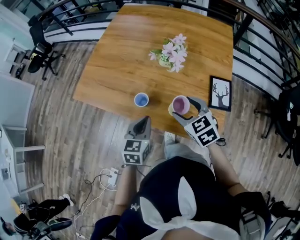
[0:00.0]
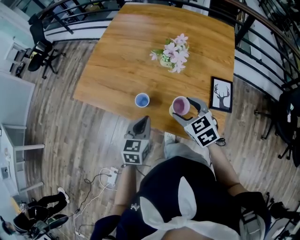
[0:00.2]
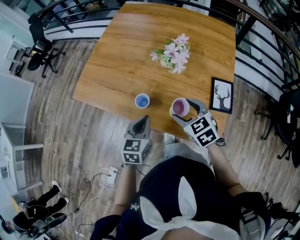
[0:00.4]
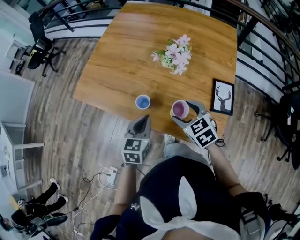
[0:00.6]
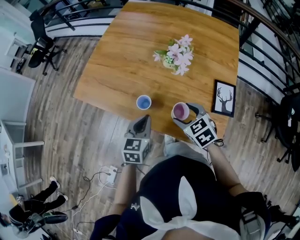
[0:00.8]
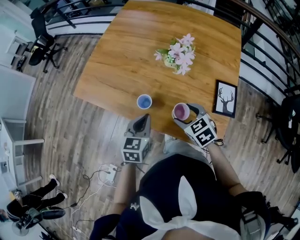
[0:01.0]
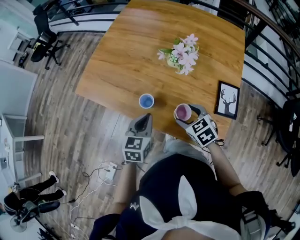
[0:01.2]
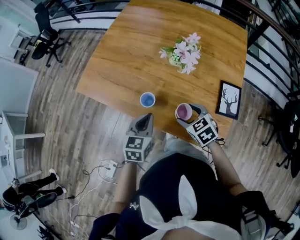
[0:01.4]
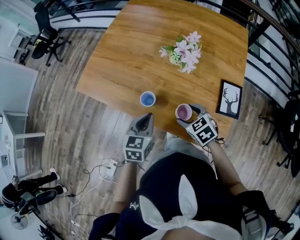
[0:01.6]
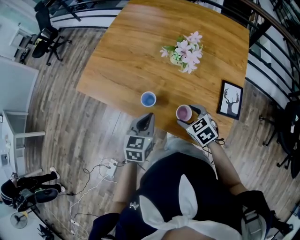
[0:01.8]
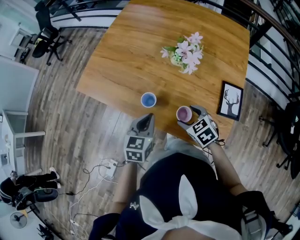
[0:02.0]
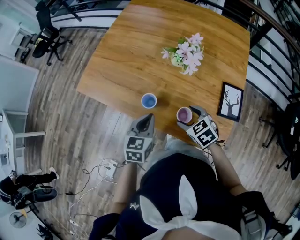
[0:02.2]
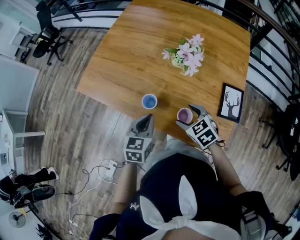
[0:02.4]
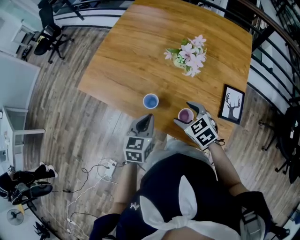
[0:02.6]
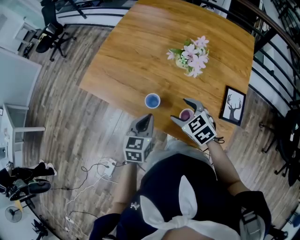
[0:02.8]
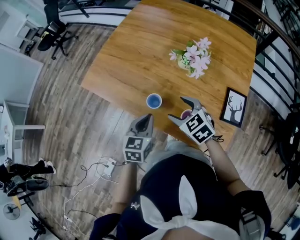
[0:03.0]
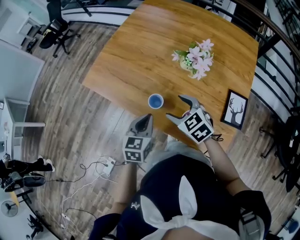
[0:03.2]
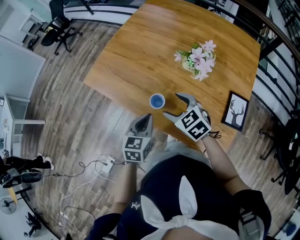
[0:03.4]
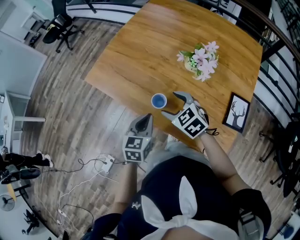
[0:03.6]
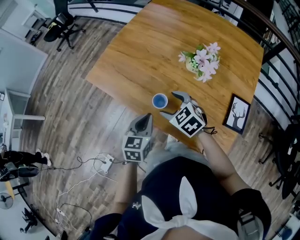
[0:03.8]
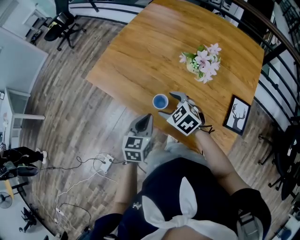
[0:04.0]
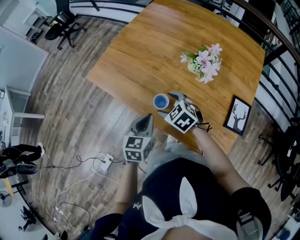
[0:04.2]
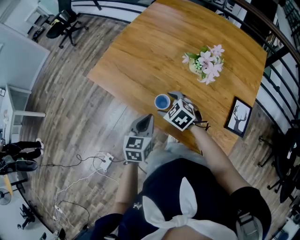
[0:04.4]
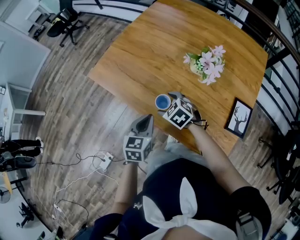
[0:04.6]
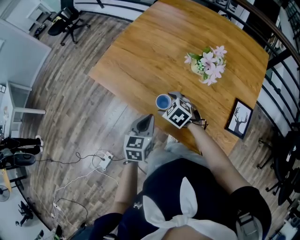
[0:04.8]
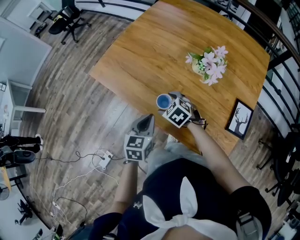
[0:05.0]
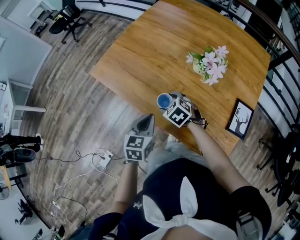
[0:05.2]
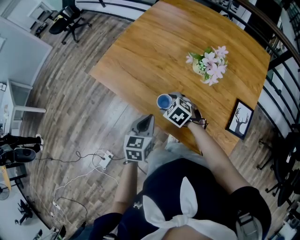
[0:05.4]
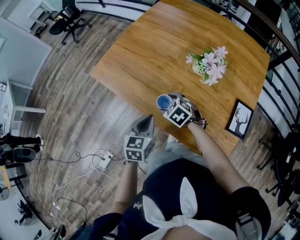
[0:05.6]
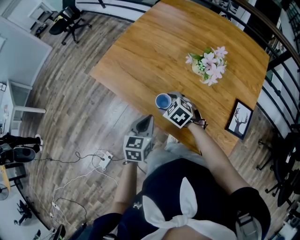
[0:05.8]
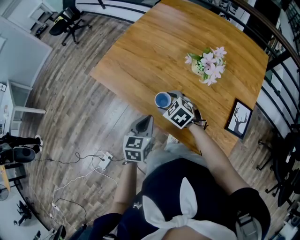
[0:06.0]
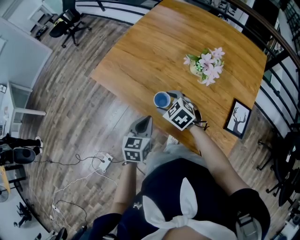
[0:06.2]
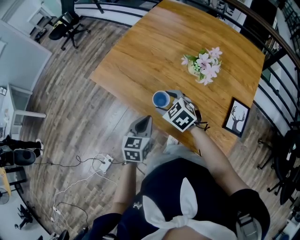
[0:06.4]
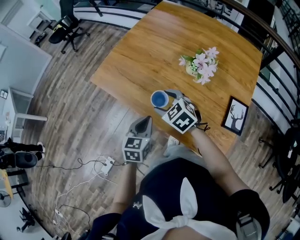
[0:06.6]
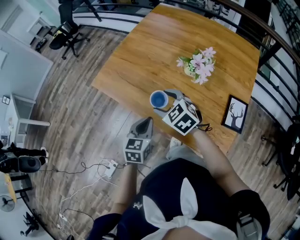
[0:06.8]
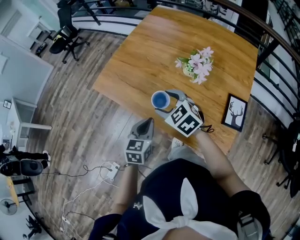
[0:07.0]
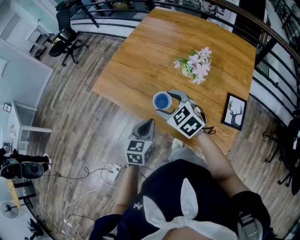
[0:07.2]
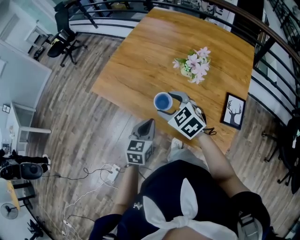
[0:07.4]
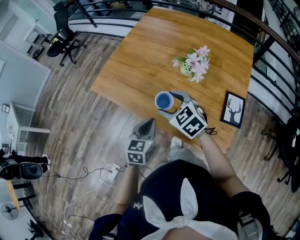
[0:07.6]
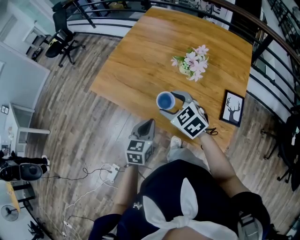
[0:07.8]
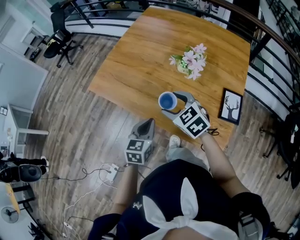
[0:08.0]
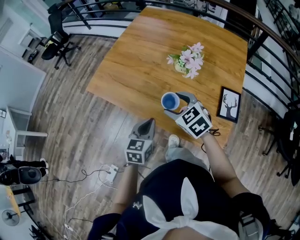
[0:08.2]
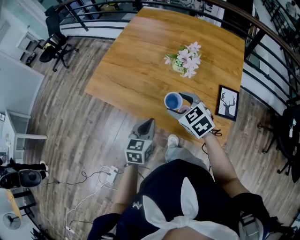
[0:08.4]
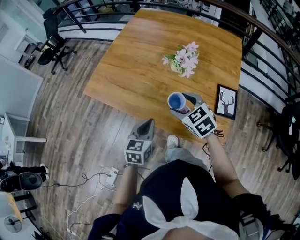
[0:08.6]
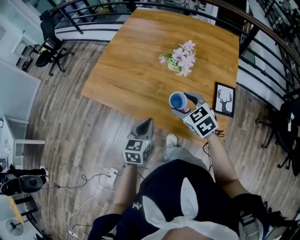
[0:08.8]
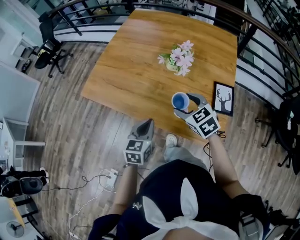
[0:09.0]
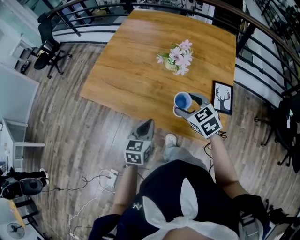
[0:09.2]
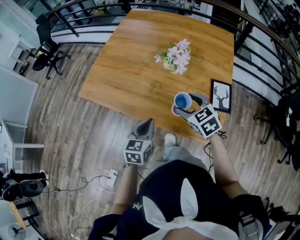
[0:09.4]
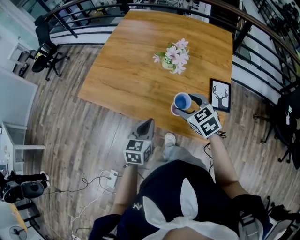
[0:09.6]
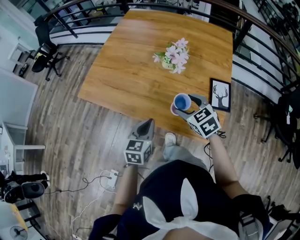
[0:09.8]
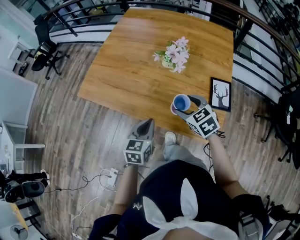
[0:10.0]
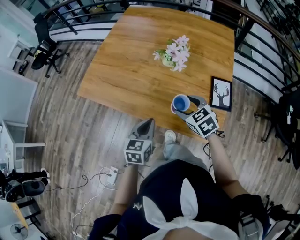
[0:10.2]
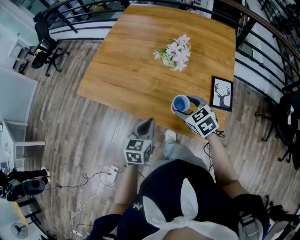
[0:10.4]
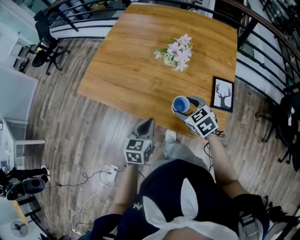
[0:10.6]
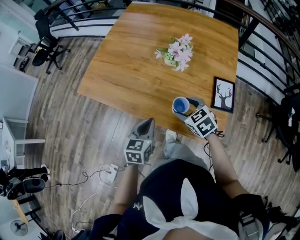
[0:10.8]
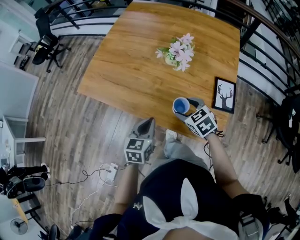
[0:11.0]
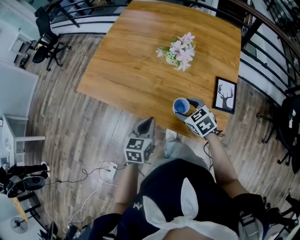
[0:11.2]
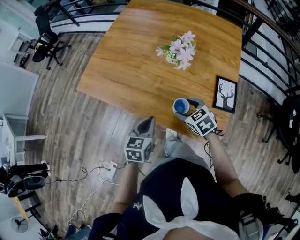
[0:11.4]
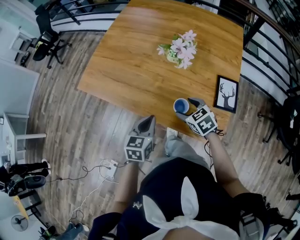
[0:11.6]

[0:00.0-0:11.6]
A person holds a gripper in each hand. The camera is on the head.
0:00.0 to 0:01.4: The right gripper goes approximately 10 cm downward.
0:01.4 to 0:02.8: The right gripper shifts some 5 cm to the left.
0:02.8 to 0:04.4: The right gripper shifts roughly 10 cm to the left and forward.
0:04.4 to 0:05.8: The grippers make only small movements.
0:05.8 to 0:07.2: The left gripper goes some 5 cm upward. Meanwhile the right gripper moves upward, some 15 cm.
0:07.2 to 0:08.8: The right gripper goes roughly 10 cm to the right and backward.
0:08.8 to 0:10.2: The right gripper changes place by about 5 cm.
0:10.2 to 0:11.6: The right gripper goes about 5 cm downward.

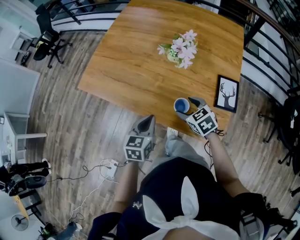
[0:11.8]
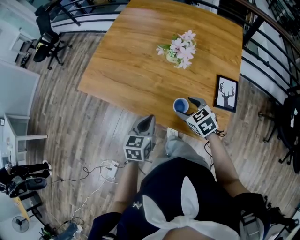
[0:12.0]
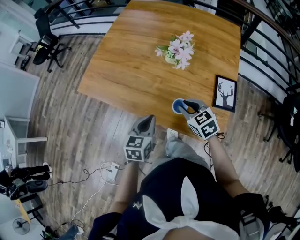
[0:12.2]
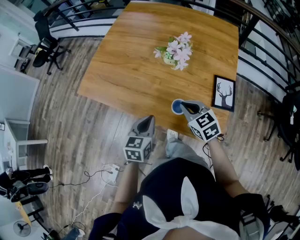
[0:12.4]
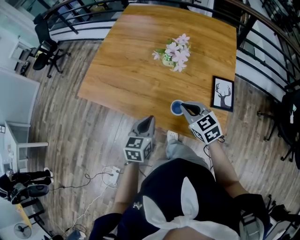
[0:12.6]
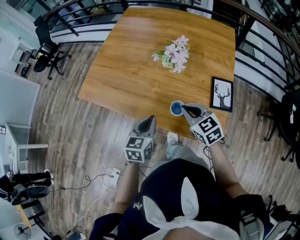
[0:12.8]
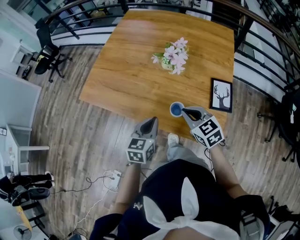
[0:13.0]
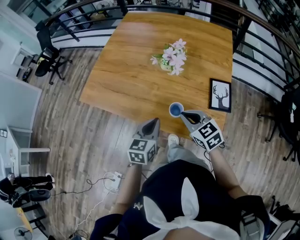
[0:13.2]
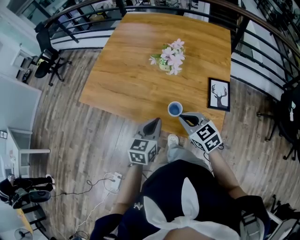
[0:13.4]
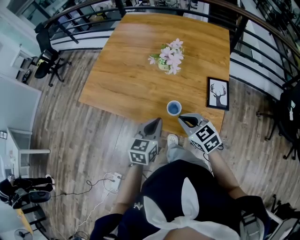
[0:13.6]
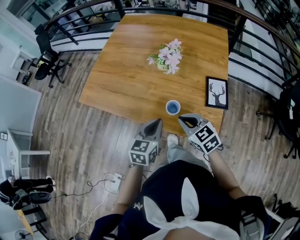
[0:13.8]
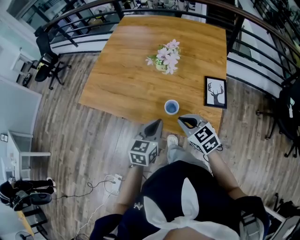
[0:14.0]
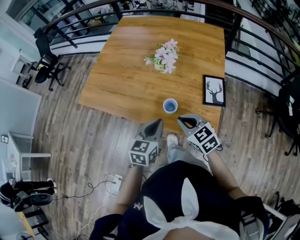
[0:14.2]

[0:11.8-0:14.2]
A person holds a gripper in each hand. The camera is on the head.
0:11.8 to 0:13.0: The right gripper shifts some 10 cm upward, and closes up.
0:13.0 to 0:14.2: Both grippers travel together backward, about 5 cm.

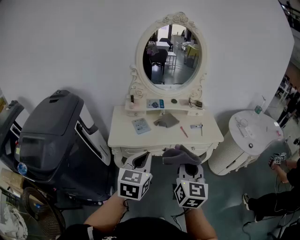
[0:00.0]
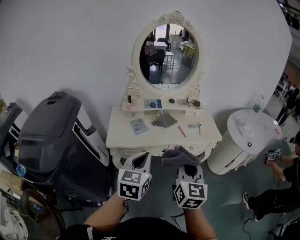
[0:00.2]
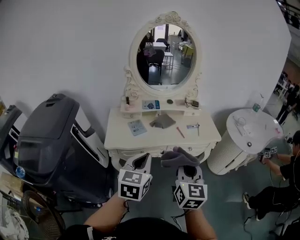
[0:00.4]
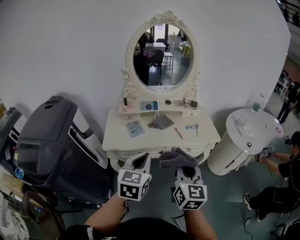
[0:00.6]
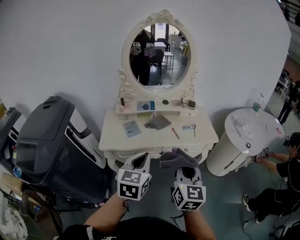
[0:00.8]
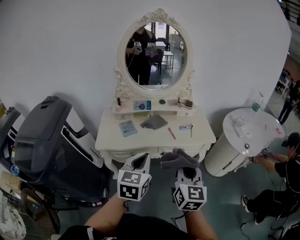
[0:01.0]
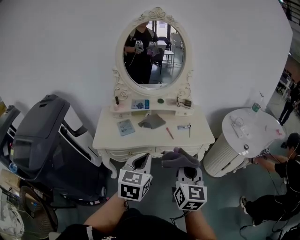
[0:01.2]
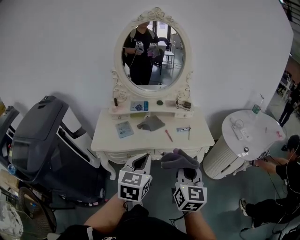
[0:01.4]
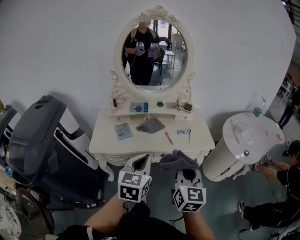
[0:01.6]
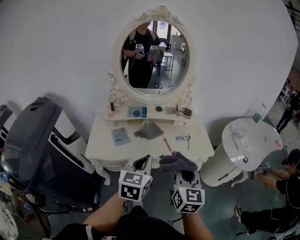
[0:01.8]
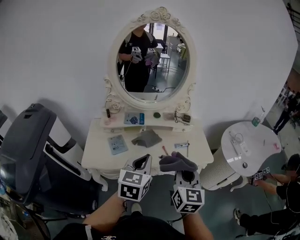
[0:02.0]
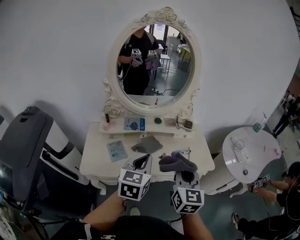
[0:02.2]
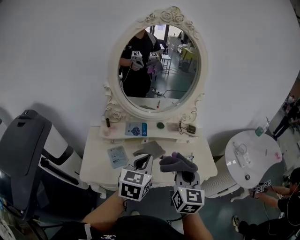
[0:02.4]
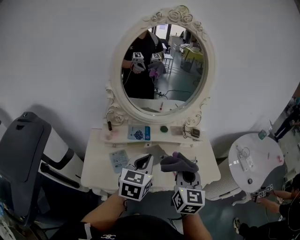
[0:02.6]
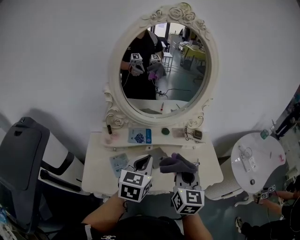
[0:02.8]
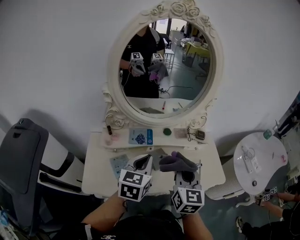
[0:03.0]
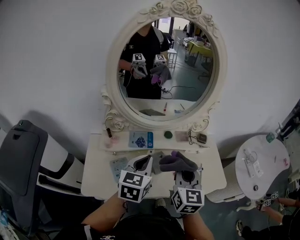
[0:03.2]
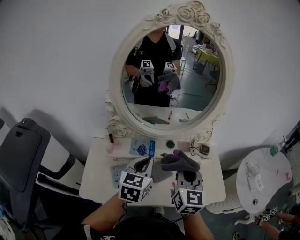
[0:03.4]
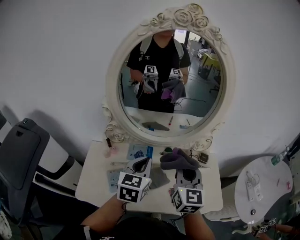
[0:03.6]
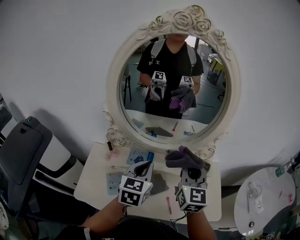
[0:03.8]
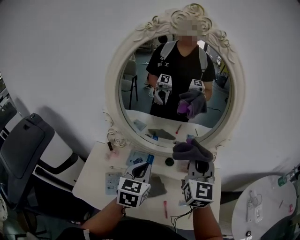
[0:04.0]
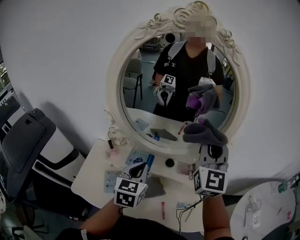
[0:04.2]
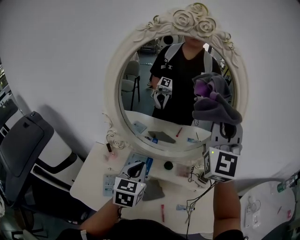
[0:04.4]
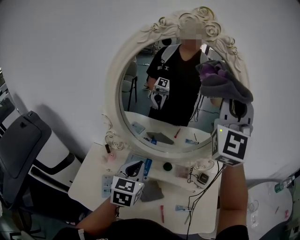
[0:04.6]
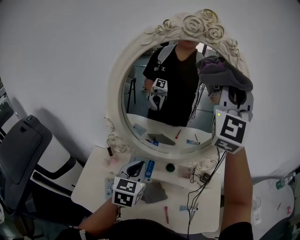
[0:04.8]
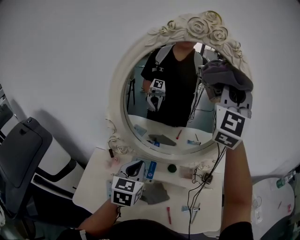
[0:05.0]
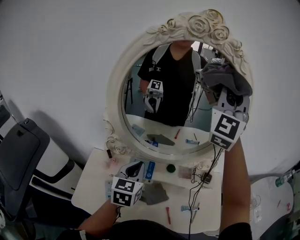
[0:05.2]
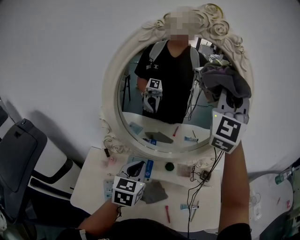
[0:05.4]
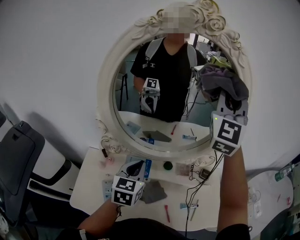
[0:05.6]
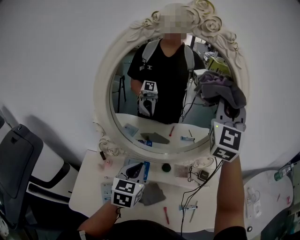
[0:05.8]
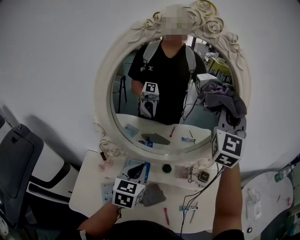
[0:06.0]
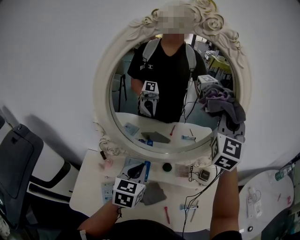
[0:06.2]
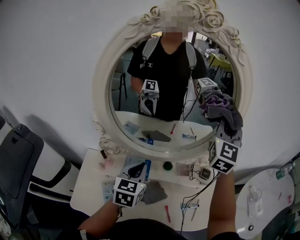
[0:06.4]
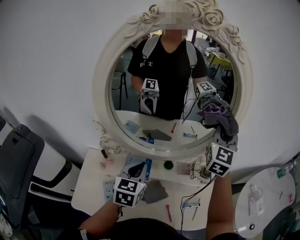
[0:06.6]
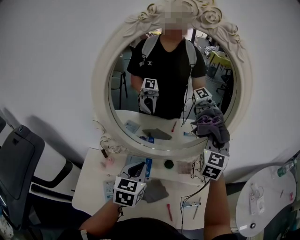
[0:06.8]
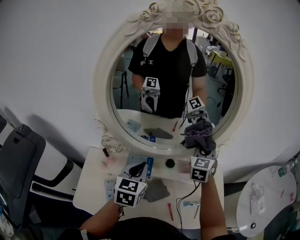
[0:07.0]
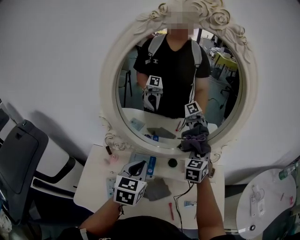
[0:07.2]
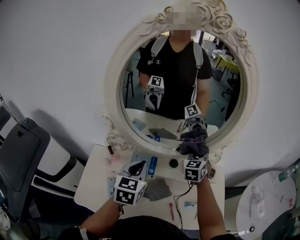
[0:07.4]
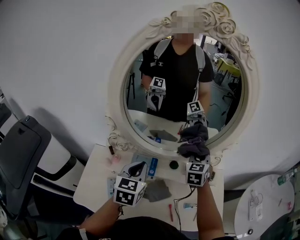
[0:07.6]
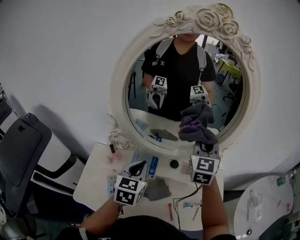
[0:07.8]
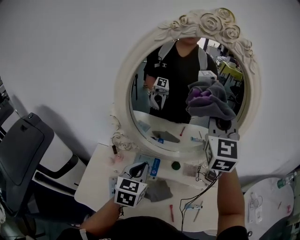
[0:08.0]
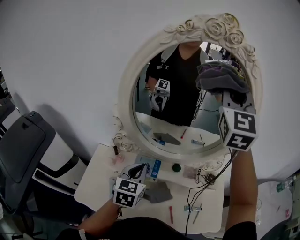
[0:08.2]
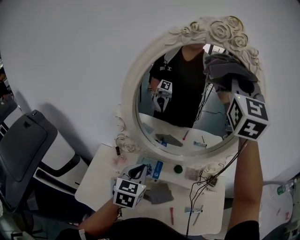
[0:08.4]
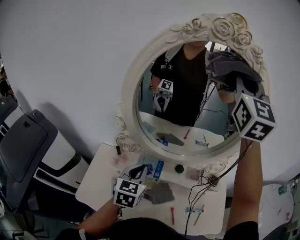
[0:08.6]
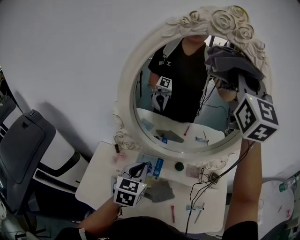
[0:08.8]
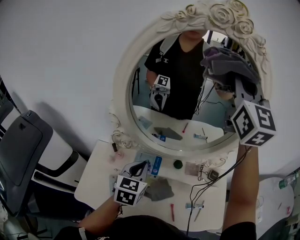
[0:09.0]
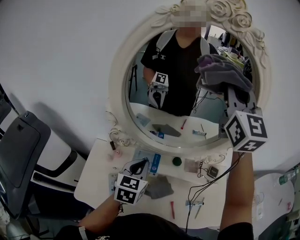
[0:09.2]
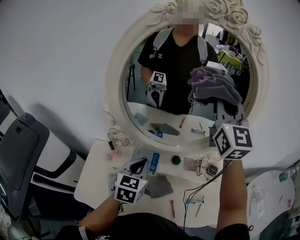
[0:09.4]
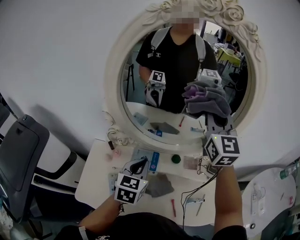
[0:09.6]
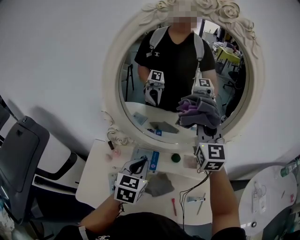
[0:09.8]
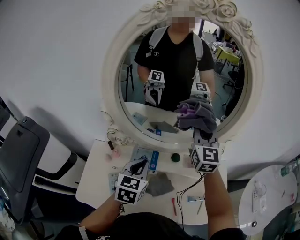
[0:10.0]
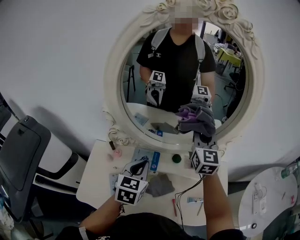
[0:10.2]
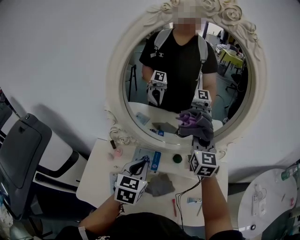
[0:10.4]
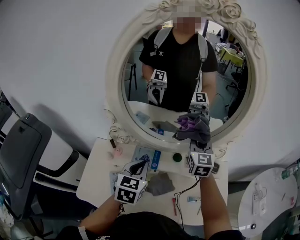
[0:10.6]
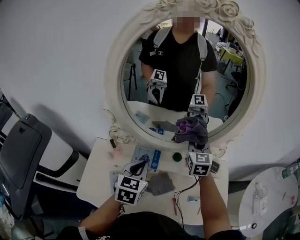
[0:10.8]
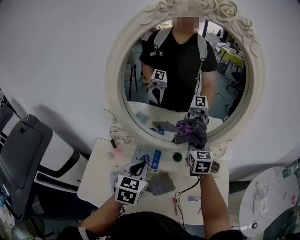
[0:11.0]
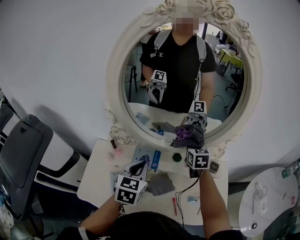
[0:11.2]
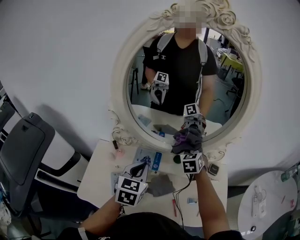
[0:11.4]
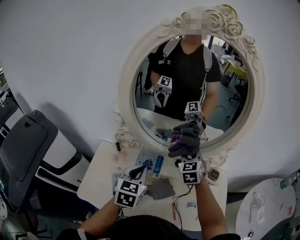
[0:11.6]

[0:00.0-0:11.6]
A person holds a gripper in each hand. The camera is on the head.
0:00.0 to 0:01.4: The two grippers go some 15 cm to the right and forward.
0:01.4 to 0:02.8: The left gripper travels forward by some 30 cm. Meanwhile the right gripper moves forward and to the left, approximately 30 cm.
0:02.8 to 0:04.4: The right gripper shifts roughly 40 cm forward and upward, and tilts its fingers approximately 30 degrees upward; the left gripper is displaced forward by about 15 cm, and swivels roughly 20 degrees.
0:04.4 to 0:05.8: The right gripper heads forward, covering about 5 cm, and travels upward and back again, some 10 cm each way.
0:05.8 to 0:07.2: The right gripper is displaced downward by approximately 35 cm, and angles its fingers downward, by about 40 degrees.
0:07.2 to 0:08.8: The right gripper shifts some 40 cm upward, and tips its fingers upward by roughly 40 degrees.
0:08.8 to 0:10.2: The right gripper moves downward, roughly 30 cm, and changes its angle by roughly 20 degrees.
0:10.2 to 0:11.6: The right gripper heads downward, covering roughly 15 cm, and rotates approximately 30 degrees.
